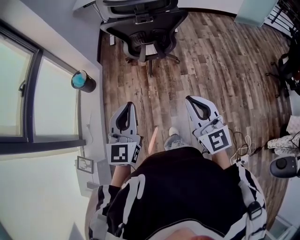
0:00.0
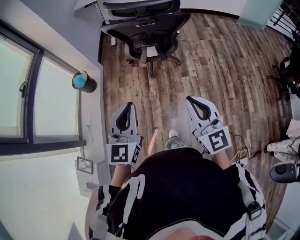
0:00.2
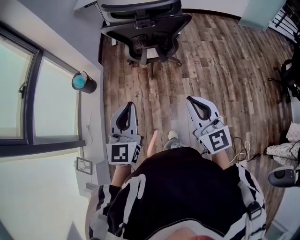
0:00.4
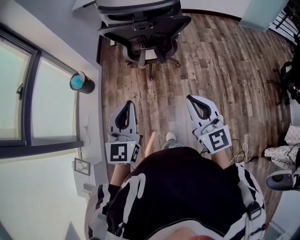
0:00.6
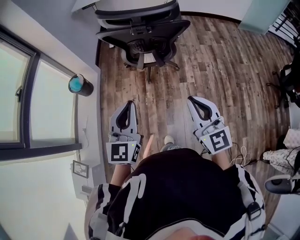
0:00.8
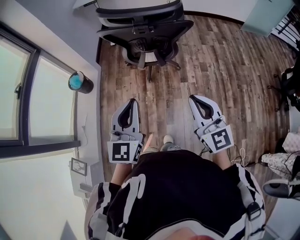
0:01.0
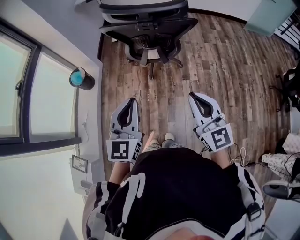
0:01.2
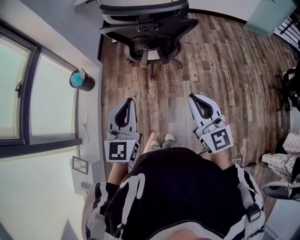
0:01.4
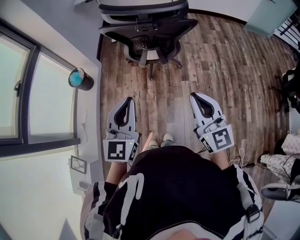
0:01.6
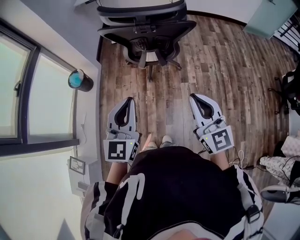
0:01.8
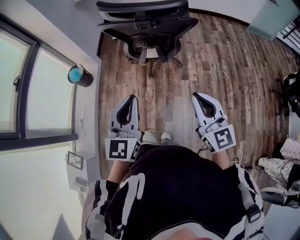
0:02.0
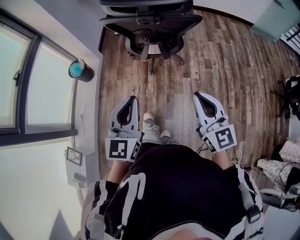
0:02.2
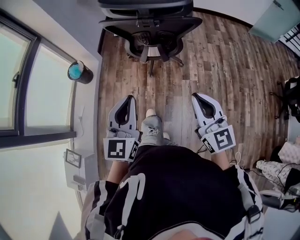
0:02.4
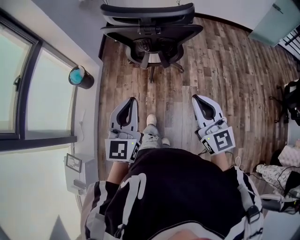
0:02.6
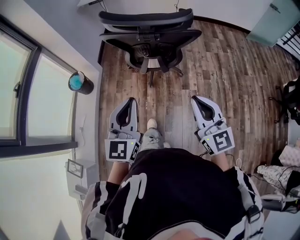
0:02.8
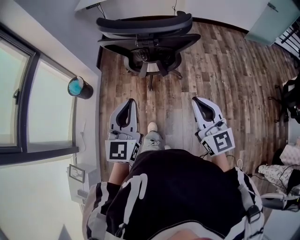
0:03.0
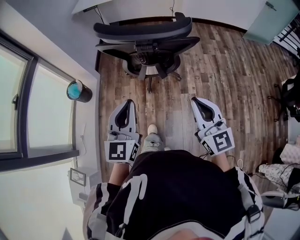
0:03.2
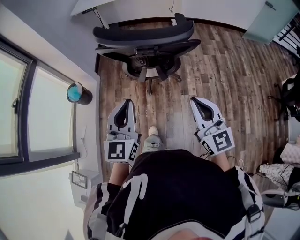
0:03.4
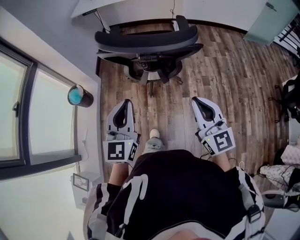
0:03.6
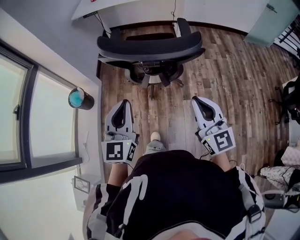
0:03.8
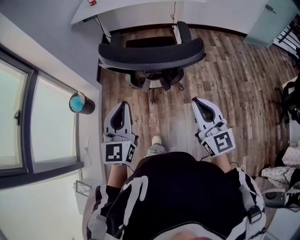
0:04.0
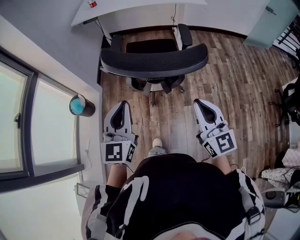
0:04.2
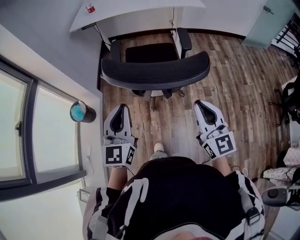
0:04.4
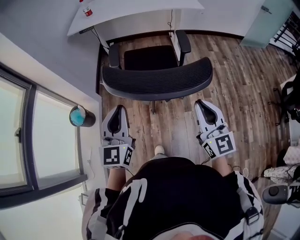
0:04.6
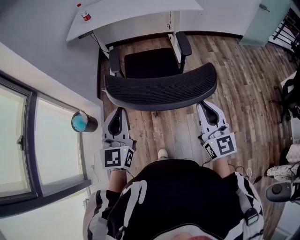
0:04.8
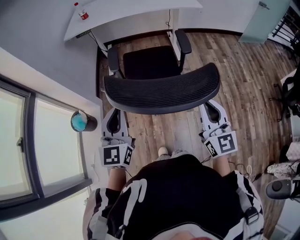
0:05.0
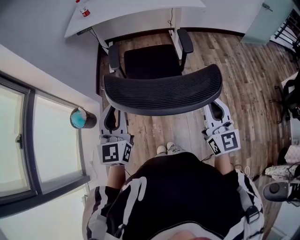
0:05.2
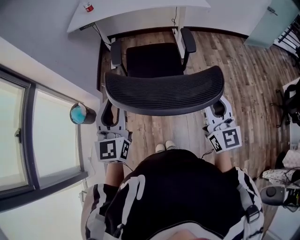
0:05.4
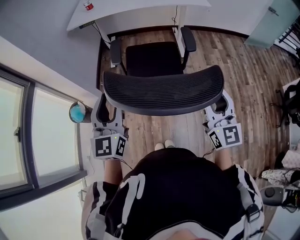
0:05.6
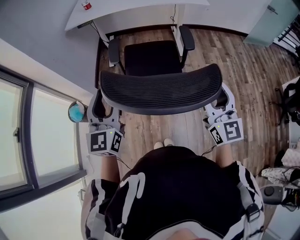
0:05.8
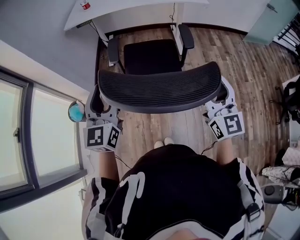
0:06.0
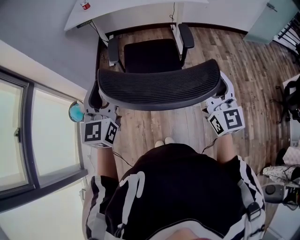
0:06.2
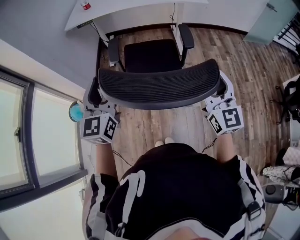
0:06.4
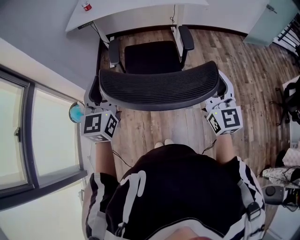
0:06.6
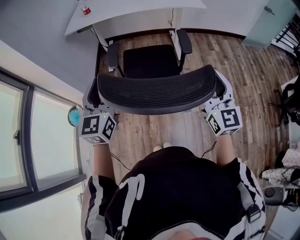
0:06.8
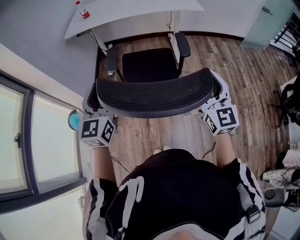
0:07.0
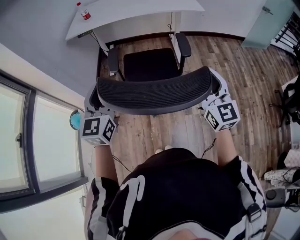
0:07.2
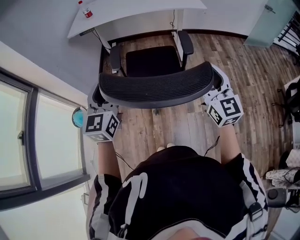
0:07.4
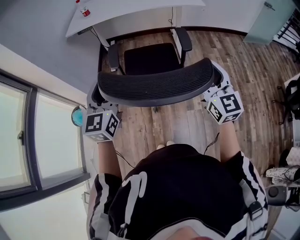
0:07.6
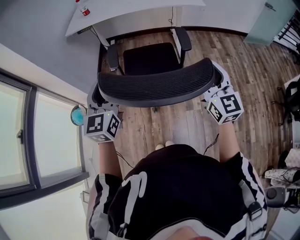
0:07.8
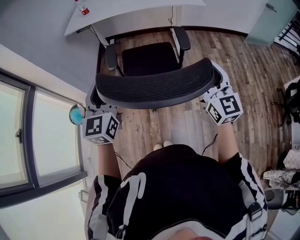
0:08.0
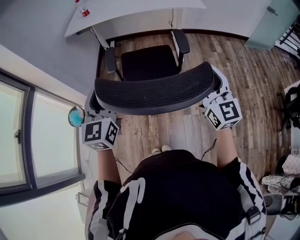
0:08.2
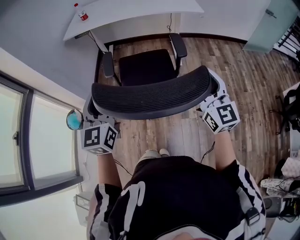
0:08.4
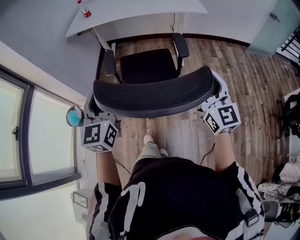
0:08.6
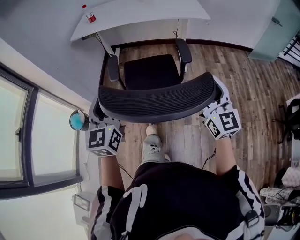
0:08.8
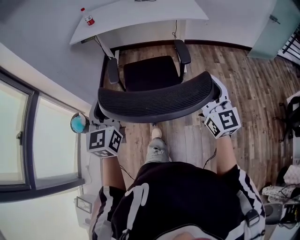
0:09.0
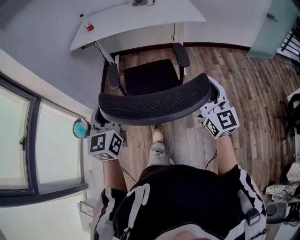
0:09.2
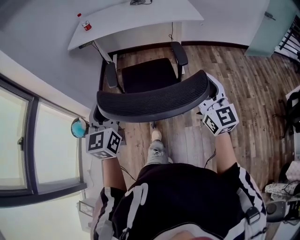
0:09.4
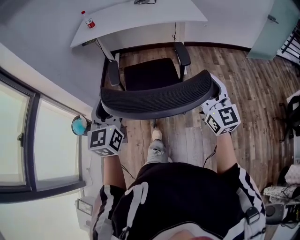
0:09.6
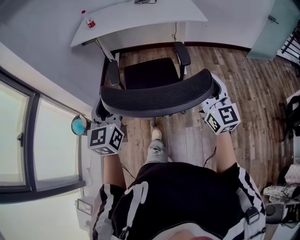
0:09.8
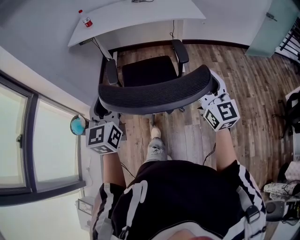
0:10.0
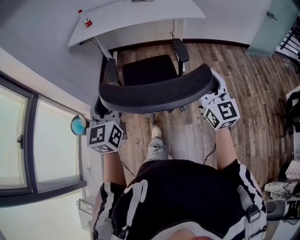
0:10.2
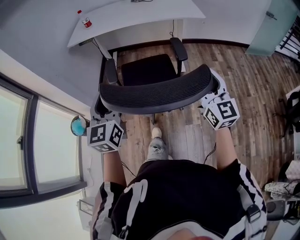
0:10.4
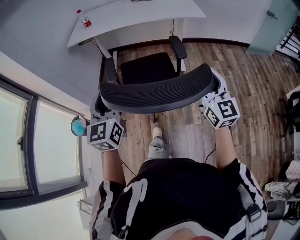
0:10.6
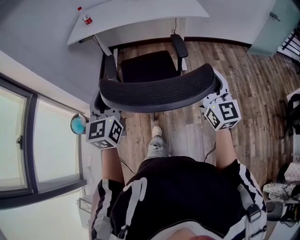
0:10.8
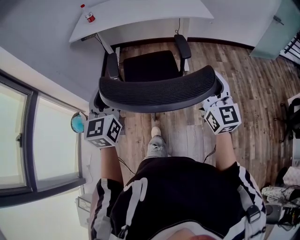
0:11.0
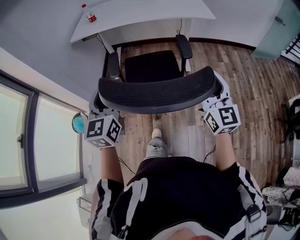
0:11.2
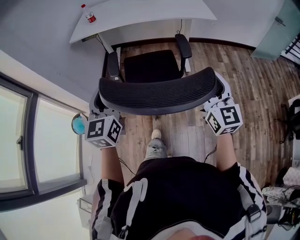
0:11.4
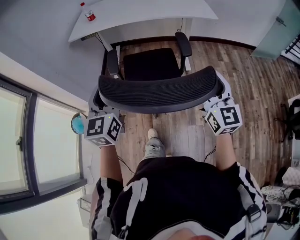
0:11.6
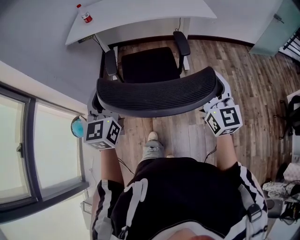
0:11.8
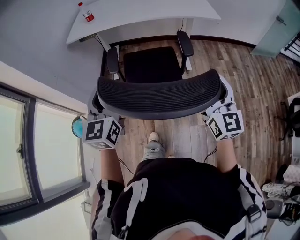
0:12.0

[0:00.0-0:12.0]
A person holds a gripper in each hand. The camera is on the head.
0:00.0 to 0:01.6: The left gripper heads forward, covering approximately 10 cm; the right gripper shifts some 15 cm forward and to the right.
0:01.6 to 0:03.0: Both grippers move forward, roughly 5 cm.
0:03.0 to 0:04.4: Both grippers move forward, approximately 15 cm.
0:04.4 to 0:06.0: Both grippers move forward, roughly 10 cm. The right gripper opens its fingers; the left gripper opens up.
0:06.0 to 0:07.6: The grippers move only a little.
0:07.6 to 0:09.0: The grippers stay close to where they were, moving slightly.
0:09.0 to 0:10.4: There are only small adjustments of the grippers.
0:10.4 to 0:12.0: Both grippers move forward and to the left, roughly 10 cm.

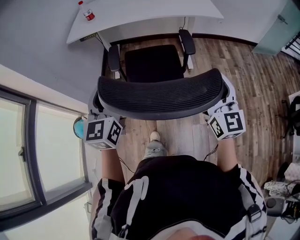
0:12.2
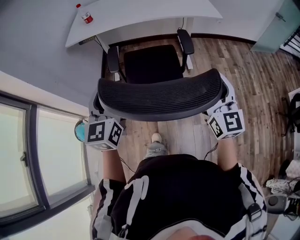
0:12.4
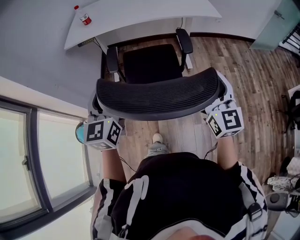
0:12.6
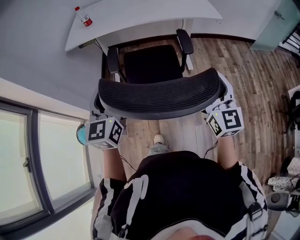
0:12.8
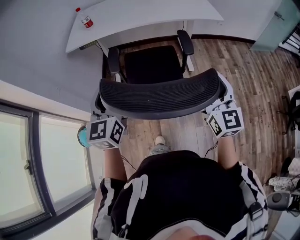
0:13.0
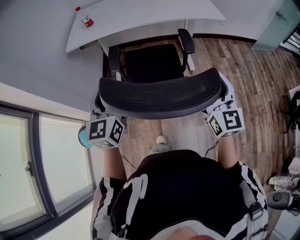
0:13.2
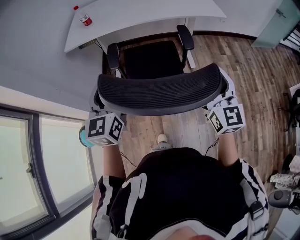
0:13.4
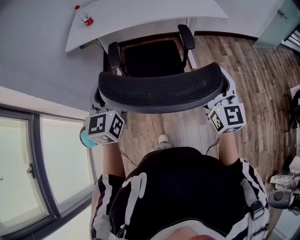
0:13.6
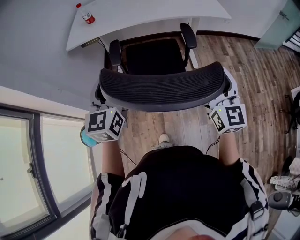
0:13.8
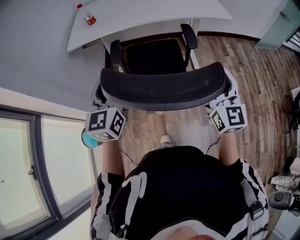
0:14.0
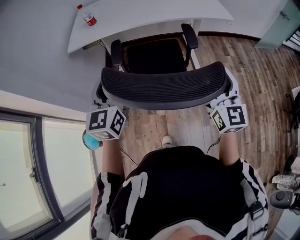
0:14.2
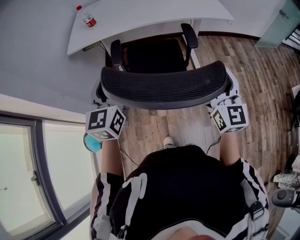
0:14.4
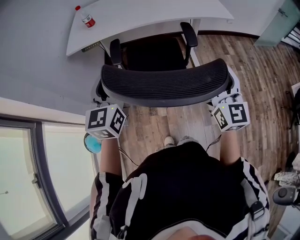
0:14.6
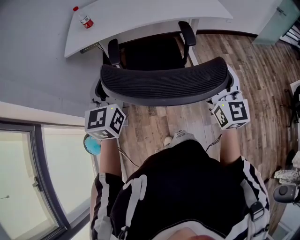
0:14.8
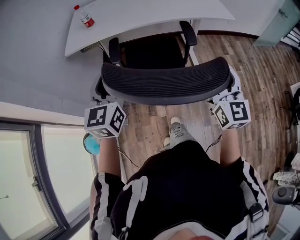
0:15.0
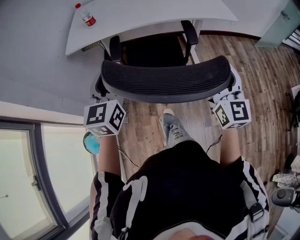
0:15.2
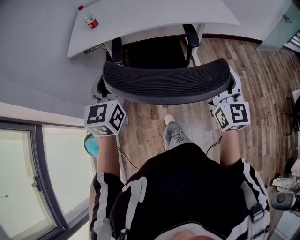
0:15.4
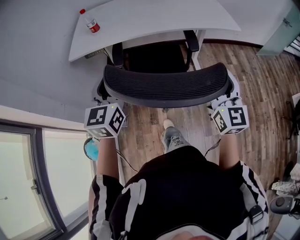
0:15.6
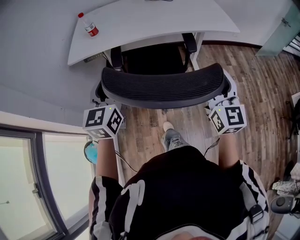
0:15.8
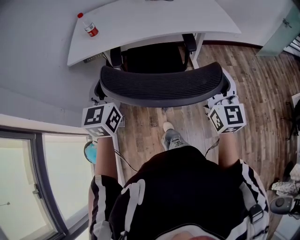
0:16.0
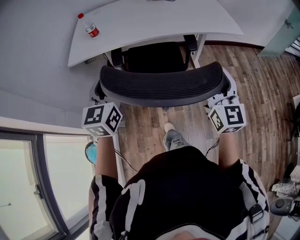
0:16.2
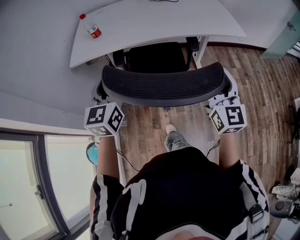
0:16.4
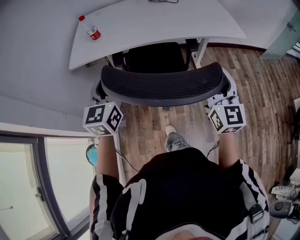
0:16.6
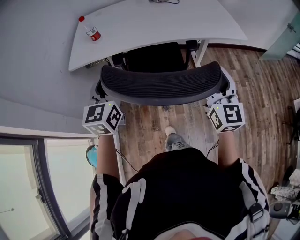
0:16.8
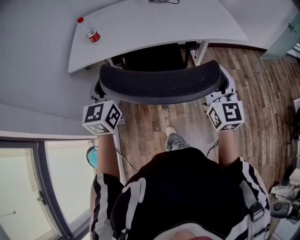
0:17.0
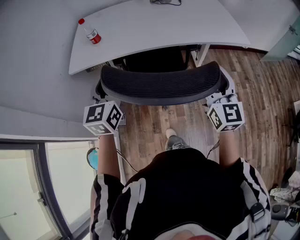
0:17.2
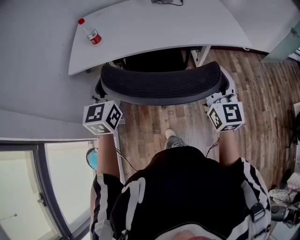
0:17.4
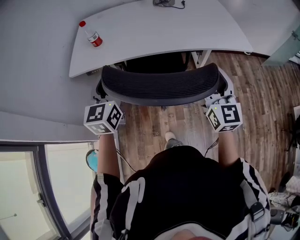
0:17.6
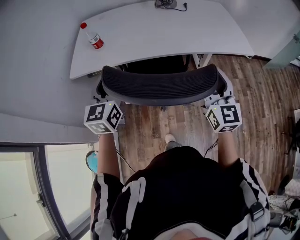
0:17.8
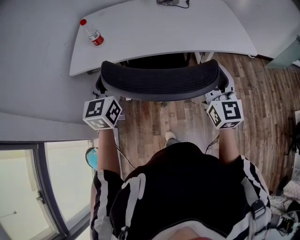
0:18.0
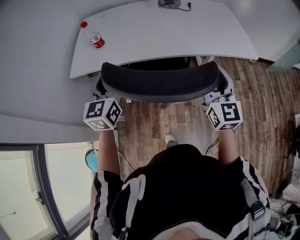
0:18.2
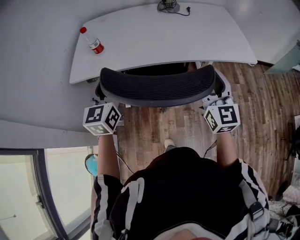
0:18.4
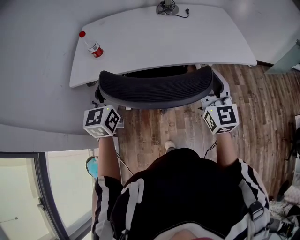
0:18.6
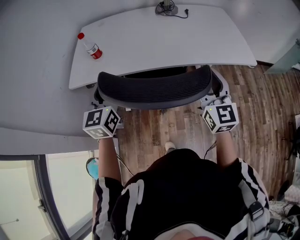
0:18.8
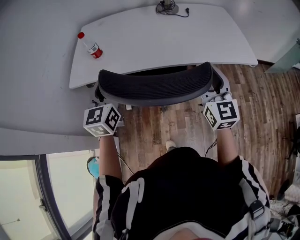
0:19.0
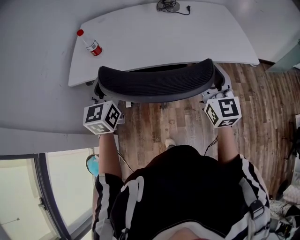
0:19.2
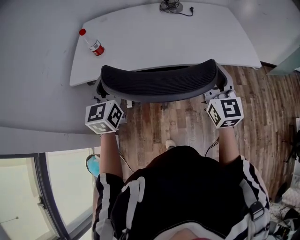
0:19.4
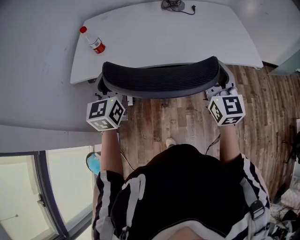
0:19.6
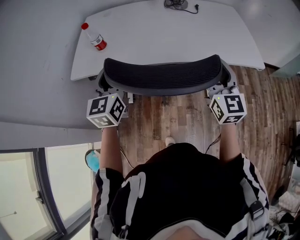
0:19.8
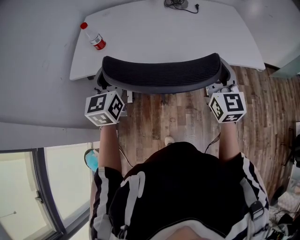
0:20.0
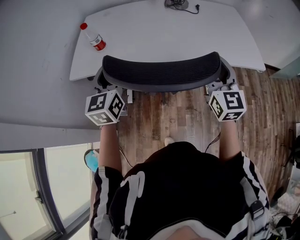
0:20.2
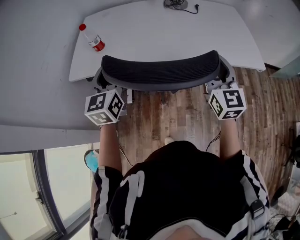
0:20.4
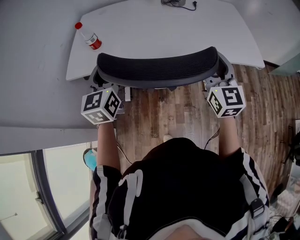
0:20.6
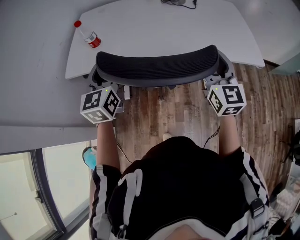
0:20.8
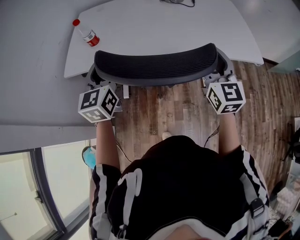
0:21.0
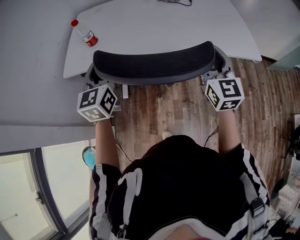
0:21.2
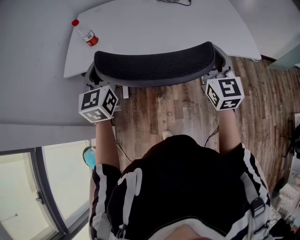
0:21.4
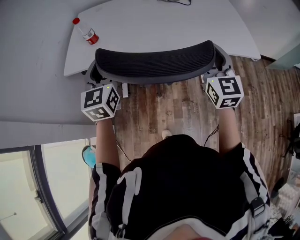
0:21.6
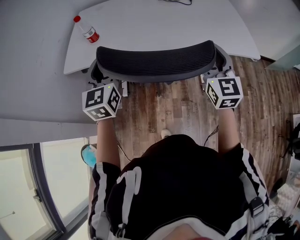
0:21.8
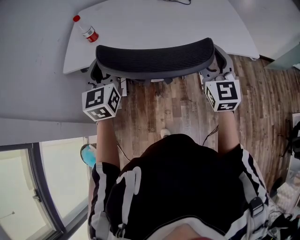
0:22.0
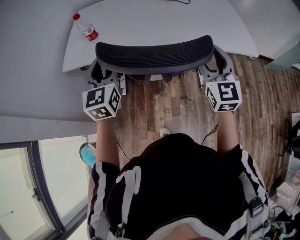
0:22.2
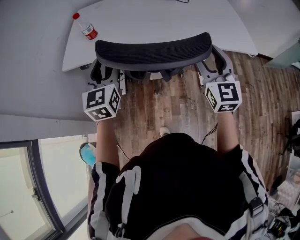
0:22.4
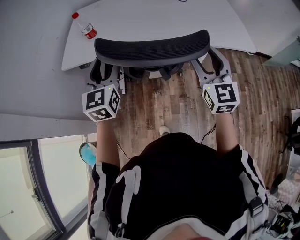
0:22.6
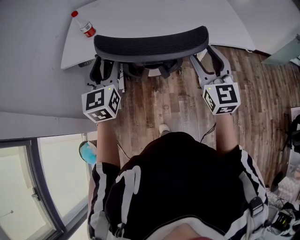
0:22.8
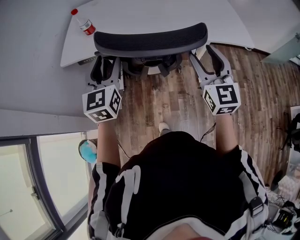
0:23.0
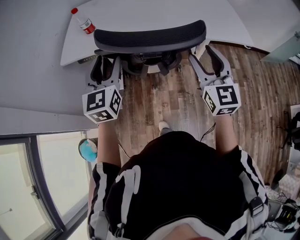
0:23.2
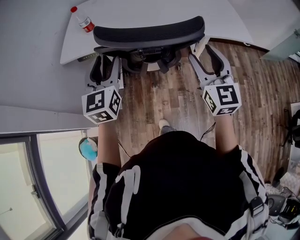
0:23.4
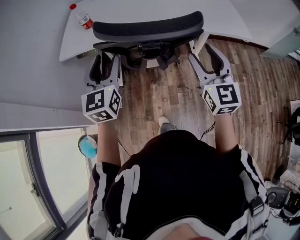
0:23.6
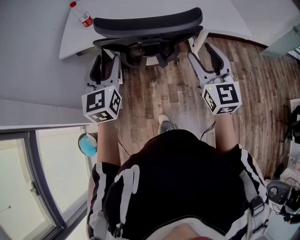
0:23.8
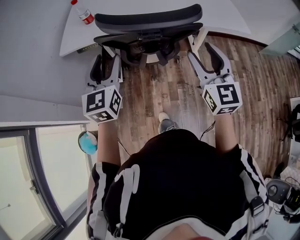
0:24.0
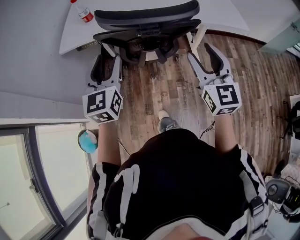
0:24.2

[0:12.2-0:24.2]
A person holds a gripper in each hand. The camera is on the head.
0:12.2 to 0:13.8: The left gripper is displaced forward by some 10 cm; the right gripper travels forward and to the left by approximately 10 cm.
0:13.8 to 0:15.2: Both grippers move forward, about 5 cm.
0:15.2 to 0:16.6: The grippers both shift forward by roughly 10 cm.
0:16.6 to 0:18.2: Both grippers move forward, roughly 15 cm.
0:18.2 to 0:19.8: Both grippers move forward, some 5 cm.
0:19.8 to 0:21.2: The grippers move only a little.
0:21.2 to 0:22.6: The two grippers go about 5 cm backward.
0:22.6 to 0:24.2: The grippers both shift backward by about 10 cm.
